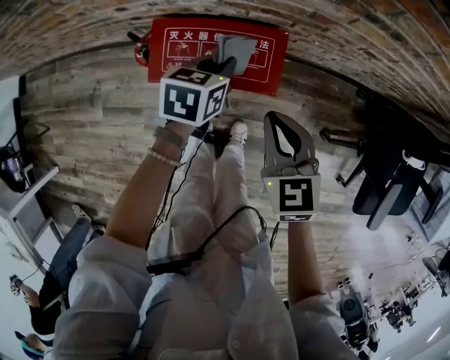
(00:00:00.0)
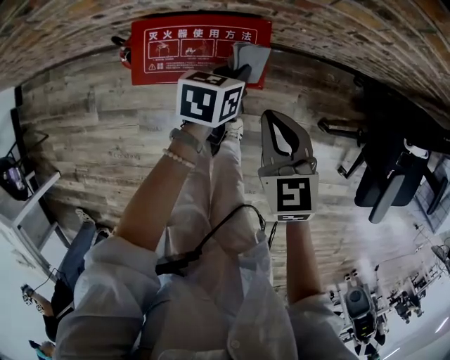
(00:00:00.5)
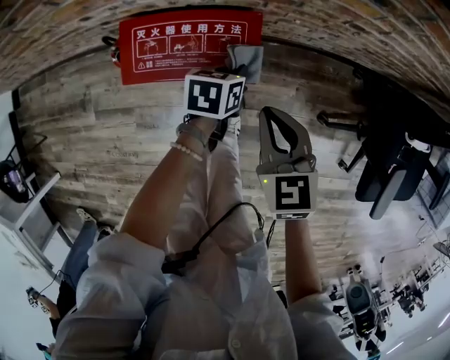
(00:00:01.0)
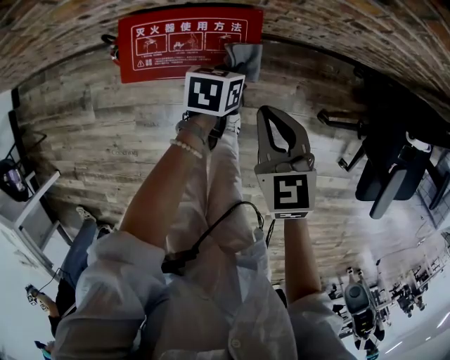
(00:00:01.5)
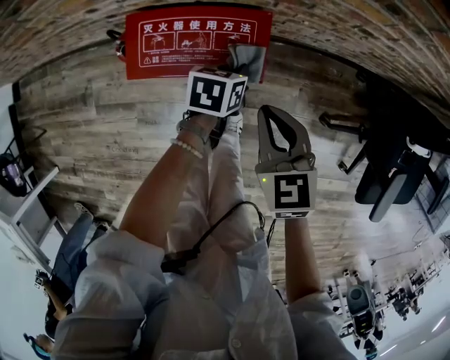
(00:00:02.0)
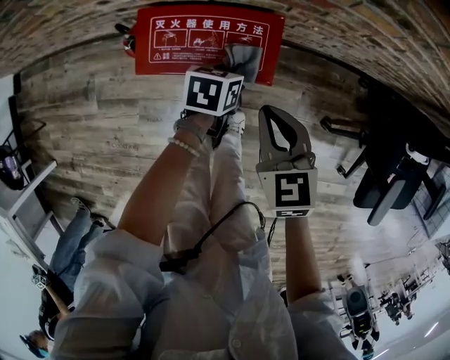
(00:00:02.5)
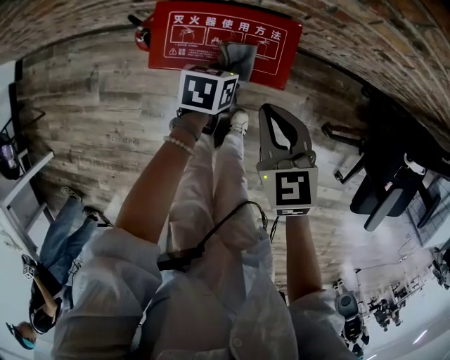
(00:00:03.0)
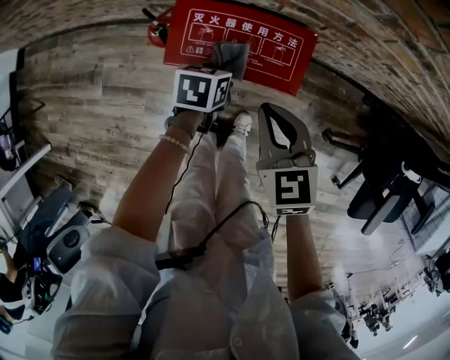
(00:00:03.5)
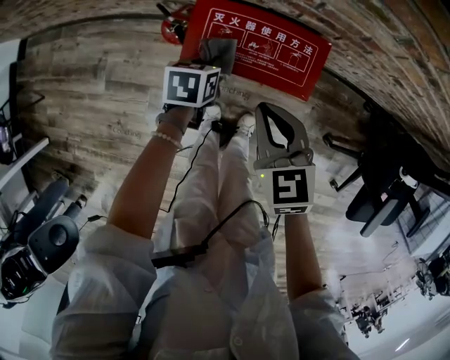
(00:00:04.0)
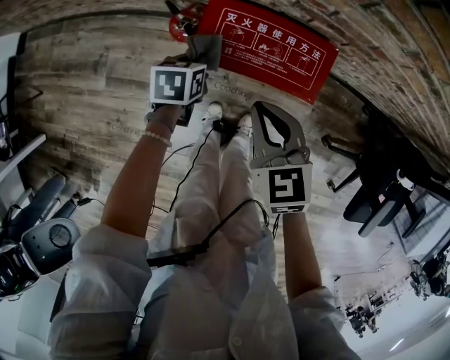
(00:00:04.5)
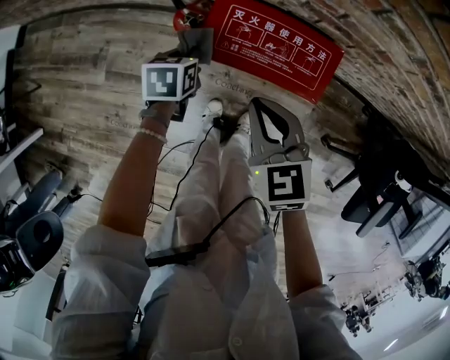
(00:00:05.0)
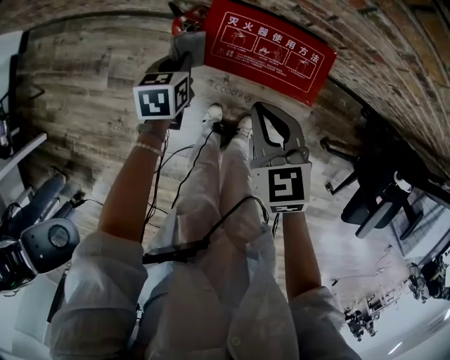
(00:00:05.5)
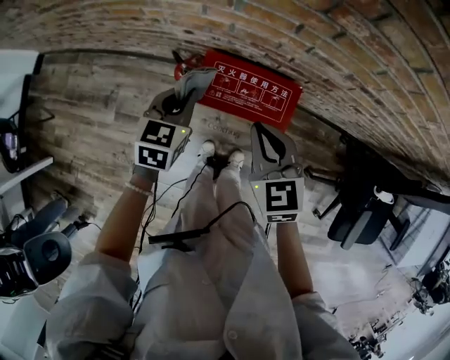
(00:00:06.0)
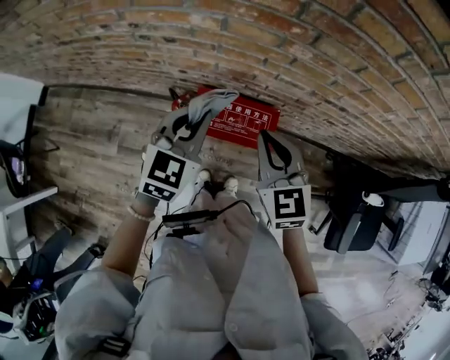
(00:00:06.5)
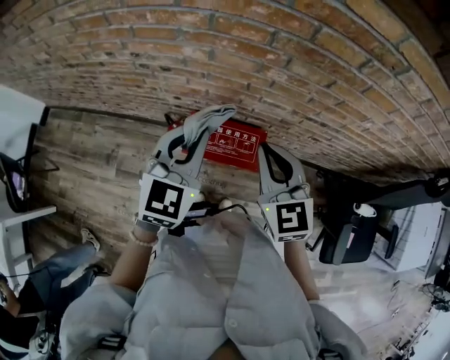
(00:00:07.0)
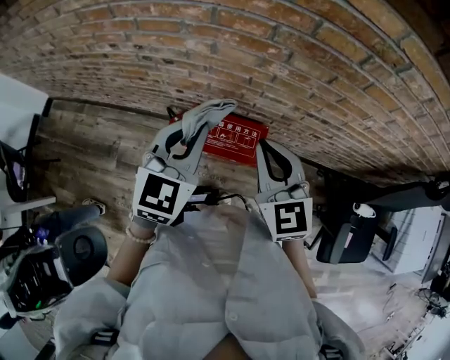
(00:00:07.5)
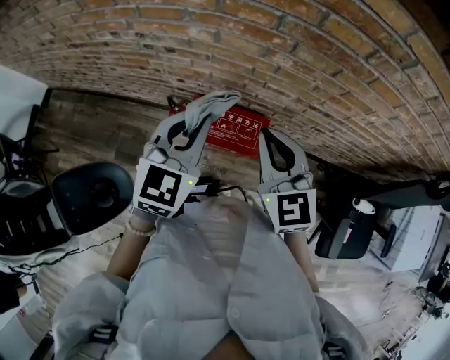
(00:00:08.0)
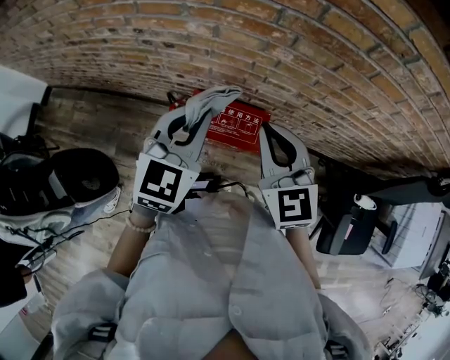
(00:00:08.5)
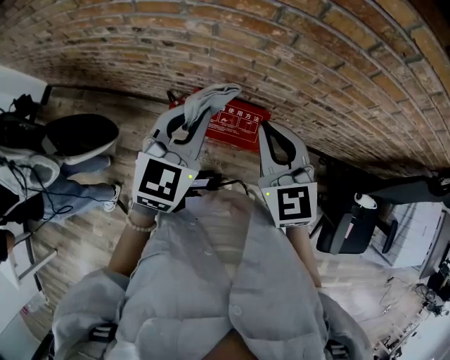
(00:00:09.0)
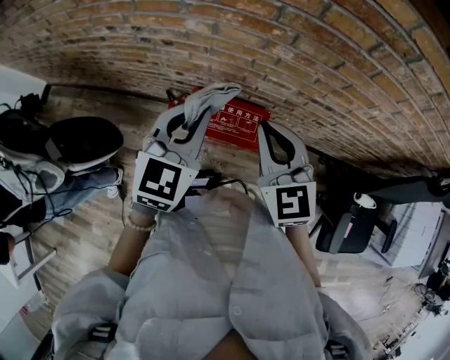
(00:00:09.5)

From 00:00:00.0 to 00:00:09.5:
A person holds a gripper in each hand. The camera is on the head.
From 00:00:00.0 to 00:00:02.0: The left gripper shifts roughly 10 cm to the right and downward.
From 00:00:02.0 to 00:00:04.0: The right gripper moves to the left, about 15 cm; the left gripper shifts roughly 20 cm to the left.
From 00:00:04.0 to 00:00:05.5: The left gripper goes approximately 10 cm to the left.
From 00:00:05.5 to 00:00:07.5: Both grippers move upward, some 40 cm. The left gripper points its fingers roughly 30 degrees further upward. The right gripper turns by approximately 30 degrees.
From 00:00:07.5 to 00:00:09.5: Neither gripper changes place.

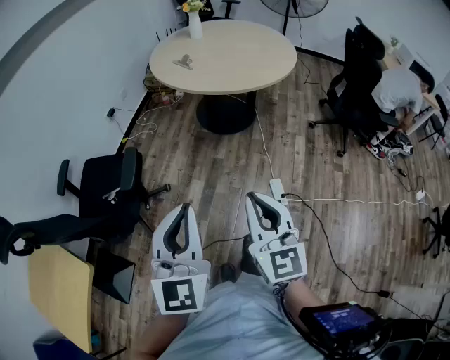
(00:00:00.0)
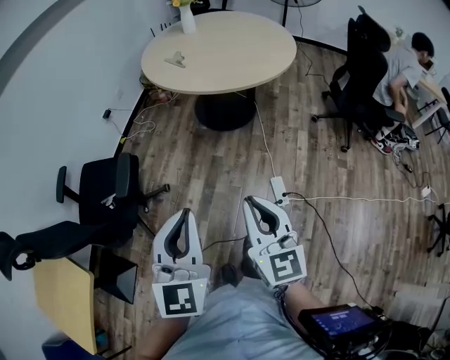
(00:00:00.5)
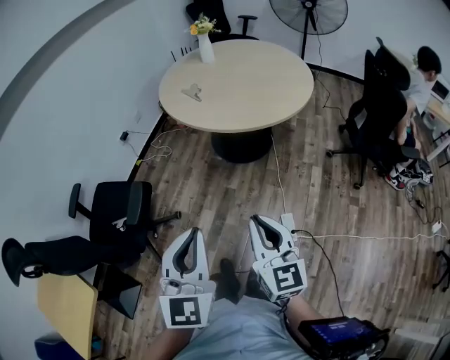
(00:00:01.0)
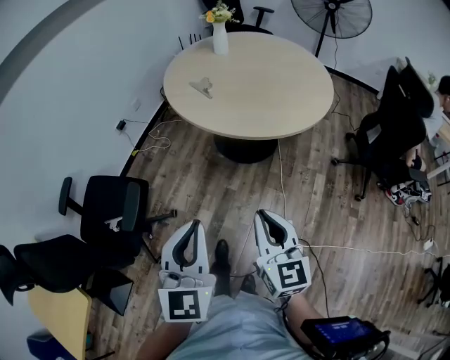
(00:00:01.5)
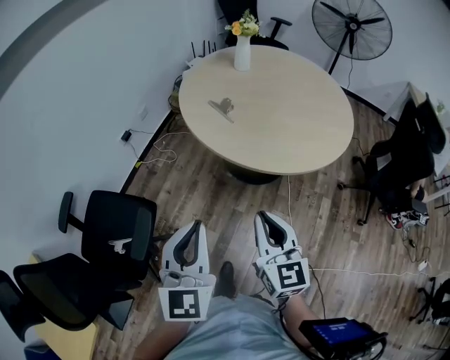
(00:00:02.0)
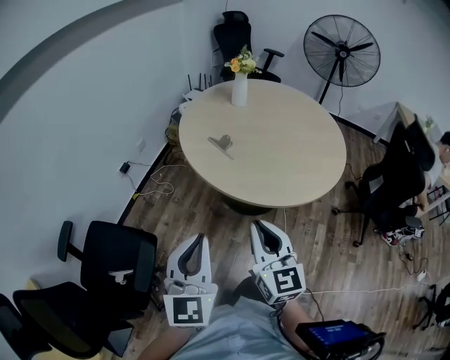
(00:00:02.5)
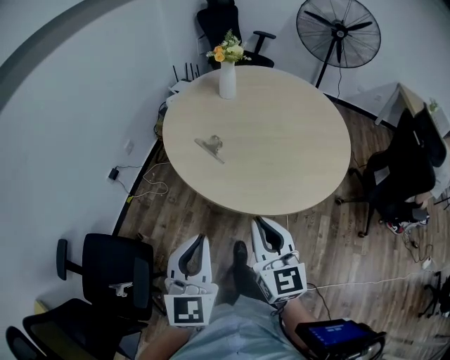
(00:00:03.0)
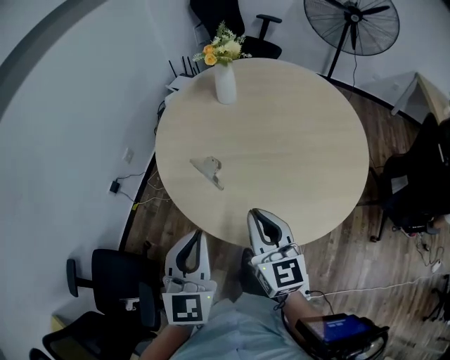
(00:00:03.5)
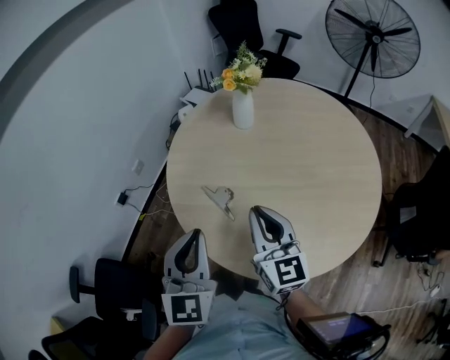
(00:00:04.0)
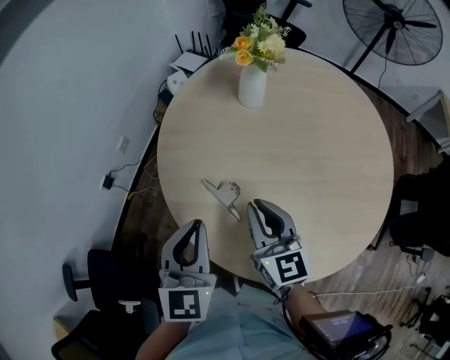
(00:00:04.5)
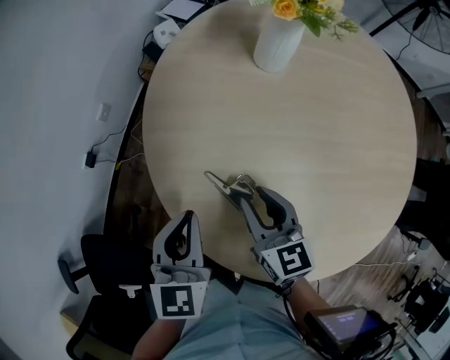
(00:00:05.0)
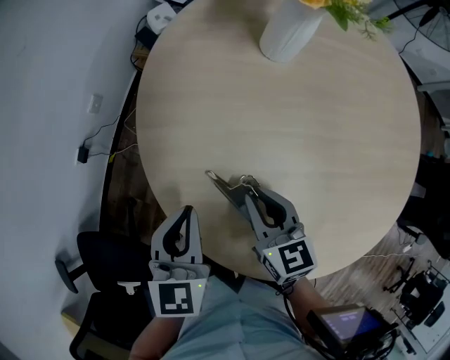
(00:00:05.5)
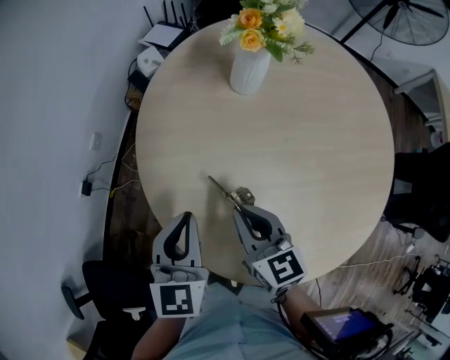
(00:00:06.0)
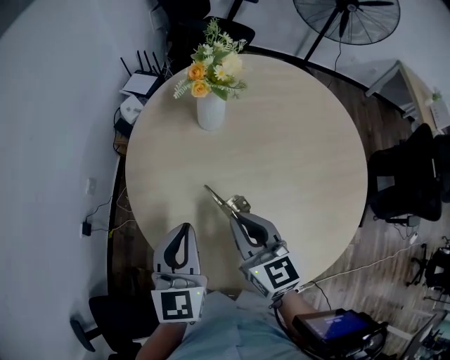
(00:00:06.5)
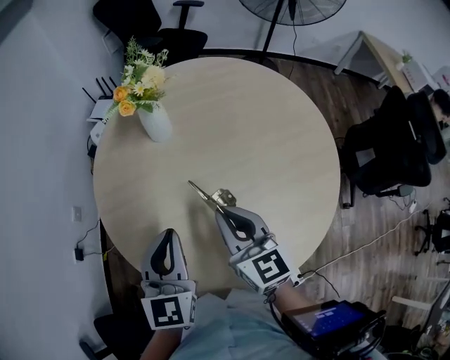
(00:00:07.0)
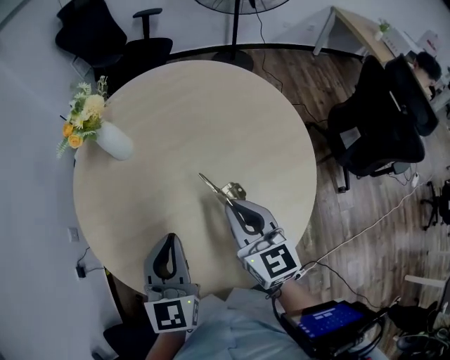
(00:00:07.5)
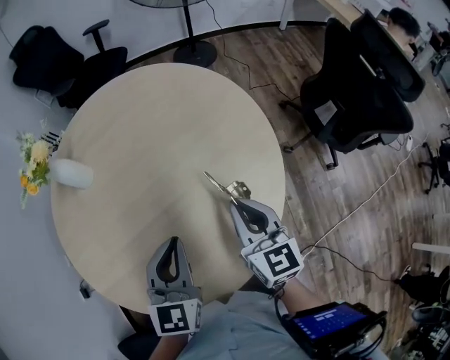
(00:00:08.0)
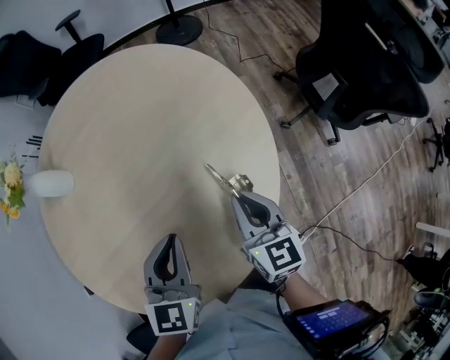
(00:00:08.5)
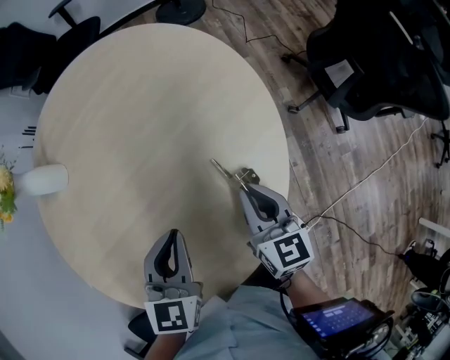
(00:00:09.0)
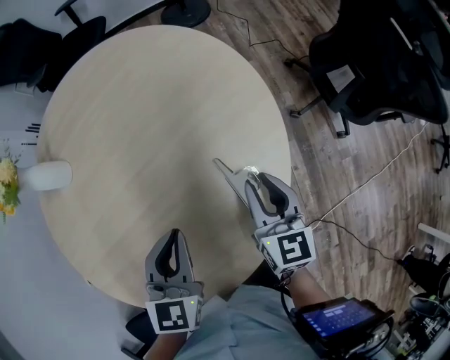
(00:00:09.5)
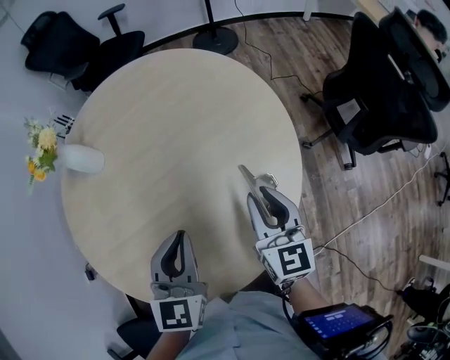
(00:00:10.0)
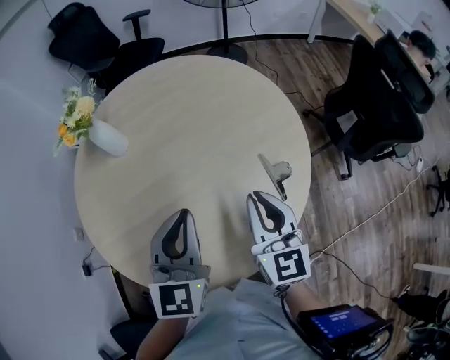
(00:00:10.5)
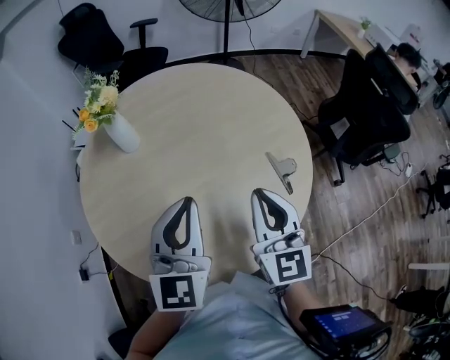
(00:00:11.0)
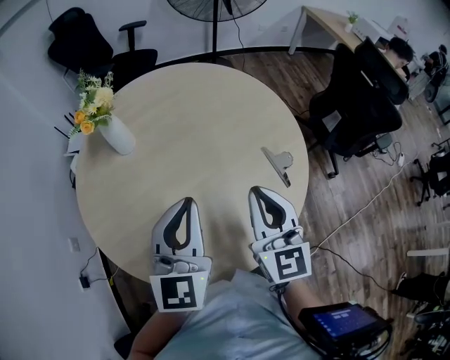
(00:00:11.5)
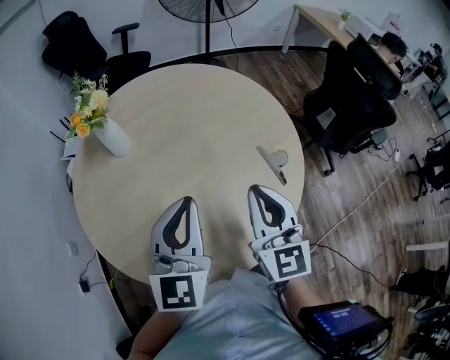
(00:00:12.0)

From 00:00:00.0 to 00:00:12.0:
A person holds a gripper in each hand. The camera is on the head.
From 00:00:00.0 to 00:00:02.0: Both grippers are carried forward, approximately 40 cm.
From 00:00:02.0 to 00:00:04.0: The pair of grippers is taken forward, roughly 50 cm.
From 00:00:04.0 to 00:00:06.0: The right gripper goes roughly 25 cm forward, downward and to the left, turns by some 20 degrees, and opens, then closes again. The left gripper shifts approximately 30 cm forward and downward, and swivels some 20 degrees.
From 00:00:06.0 to 00:00:08.0: Both grippers are carried roughly 50 cm. The left gripper rotates about 30 degrees. Meanwhile the right gripper rotates some 40 degrees.
From 00:00:08.0 to 00:00:10.0: The left gripper goes downward and returns, about 10 cm each way; the right gripper reaches roughly 15 cm downward, then returns.
From 00:00:10.0 to 00:00:12.0: The left gripper moves to the left, upward and backward, about 25 cm, and swivels roughly 20 degrees, while the right gripper is displaced to the left, backward and upward by approximately 30 cm.

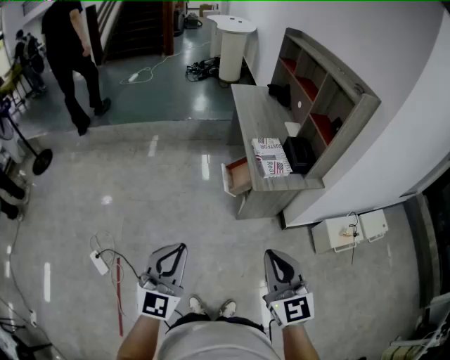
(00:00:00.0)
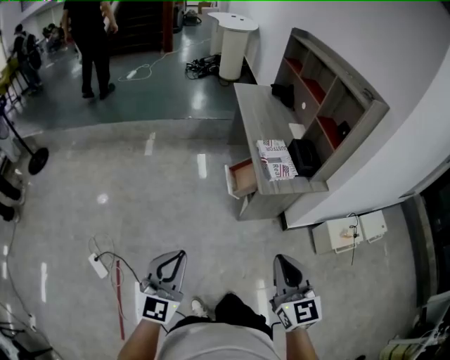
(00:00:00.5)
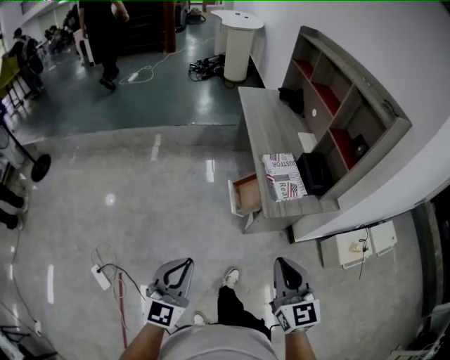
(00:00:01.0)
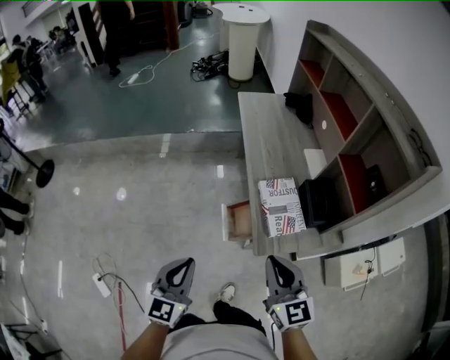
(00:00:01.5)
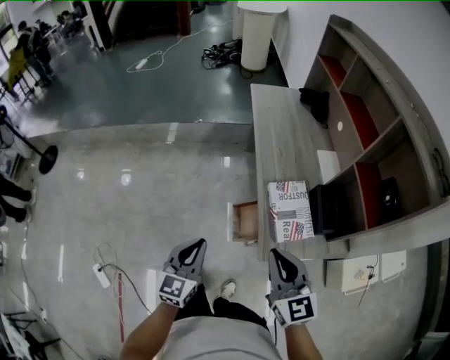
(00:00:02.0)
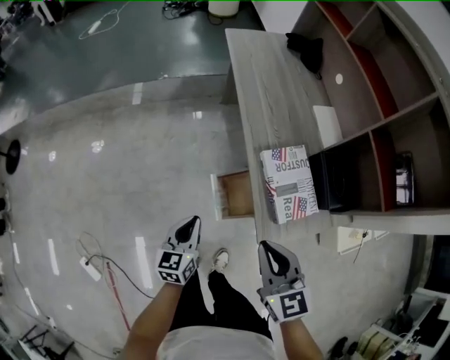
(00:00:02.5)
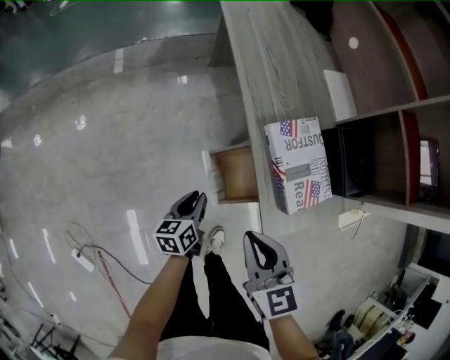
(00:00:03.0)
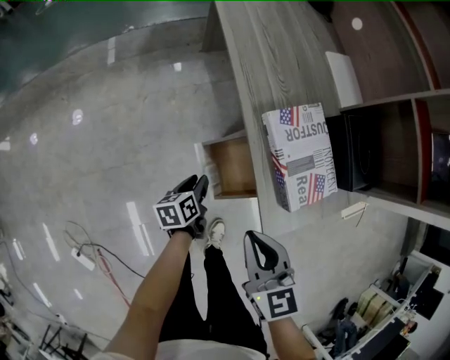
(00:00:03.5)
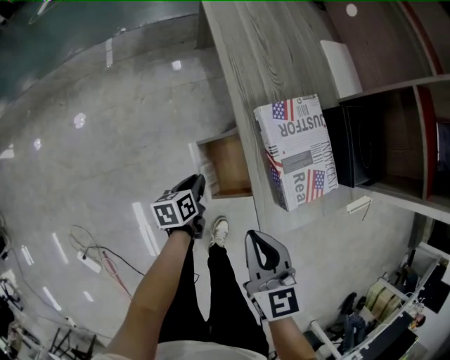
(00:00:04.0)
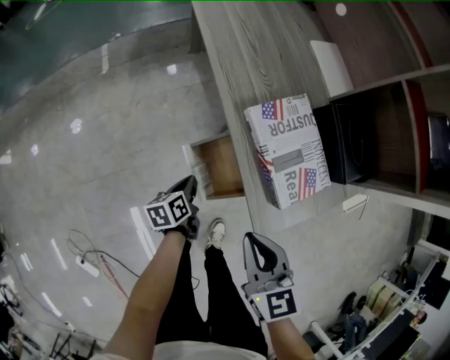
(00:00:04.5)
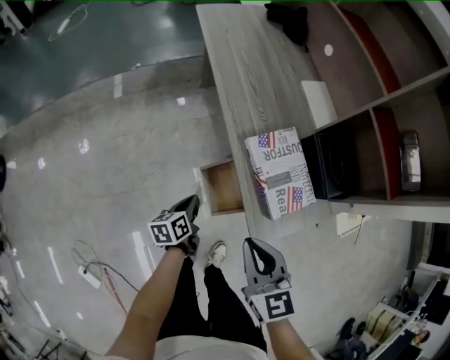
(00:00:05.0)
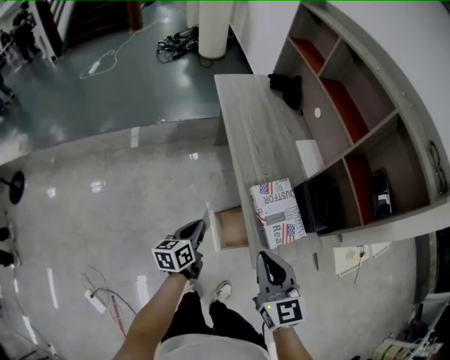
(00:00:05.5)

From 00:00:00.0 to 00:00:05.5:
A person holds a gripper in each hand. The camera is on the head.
From 00:00:00.0 to 00:00:02.0: Both grippers are carried forward, some 40 cm. The left gripper rotates roughly 20 degrees.
From 00:00:02.0 to 00:00:03.5: The right gripper is displaced downward by some 25 cm, and changes its angle by about 30 degrees; the left gripper is displaced downward by some 40 cm, changes its angle by roughly 60 degrees, and opens.
From 00:00:03.5 to 00:00:05.5: The two grippers go some 25 cm upward. The left gripper rotates approximately 20 degrees, and closes up.
